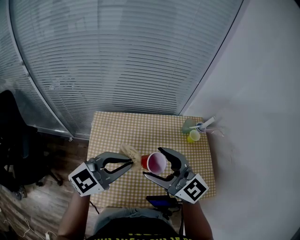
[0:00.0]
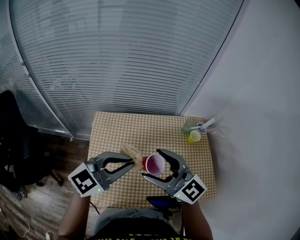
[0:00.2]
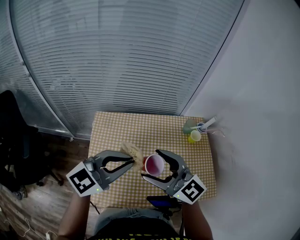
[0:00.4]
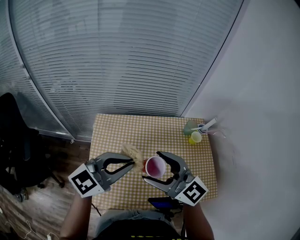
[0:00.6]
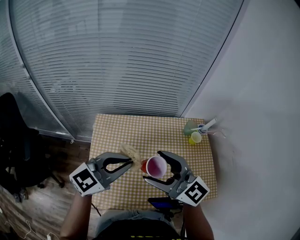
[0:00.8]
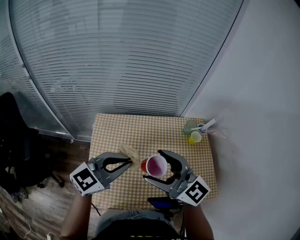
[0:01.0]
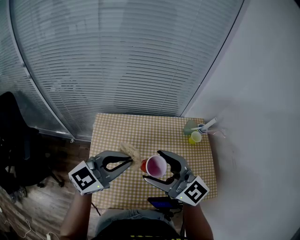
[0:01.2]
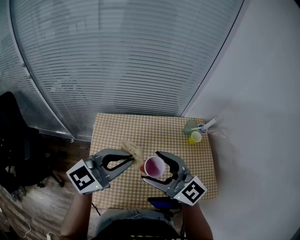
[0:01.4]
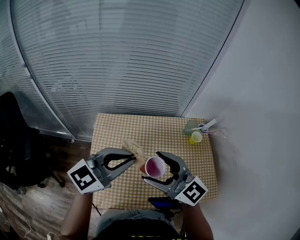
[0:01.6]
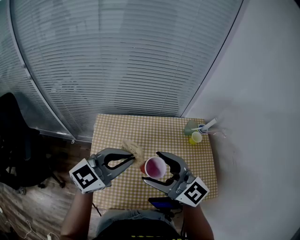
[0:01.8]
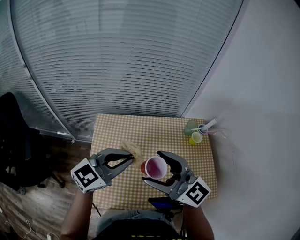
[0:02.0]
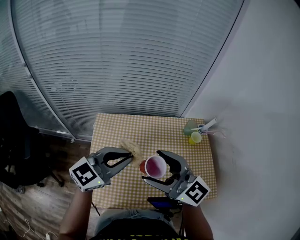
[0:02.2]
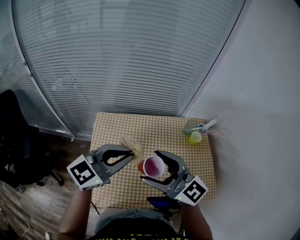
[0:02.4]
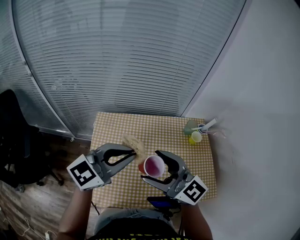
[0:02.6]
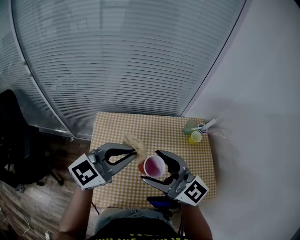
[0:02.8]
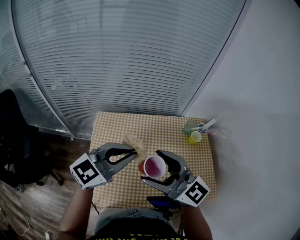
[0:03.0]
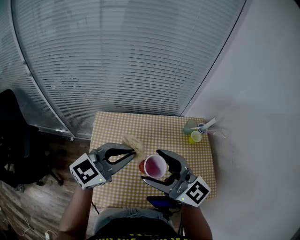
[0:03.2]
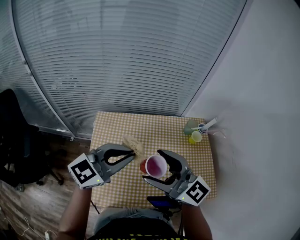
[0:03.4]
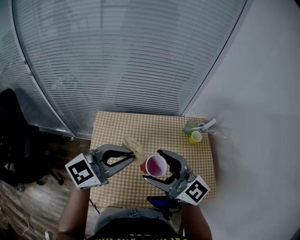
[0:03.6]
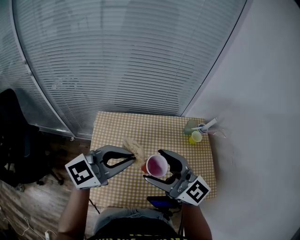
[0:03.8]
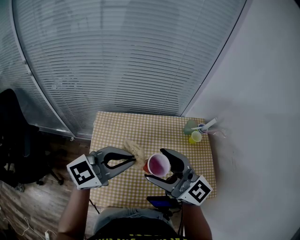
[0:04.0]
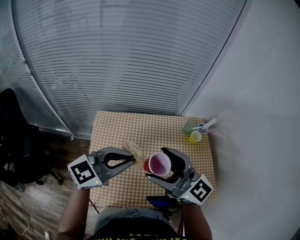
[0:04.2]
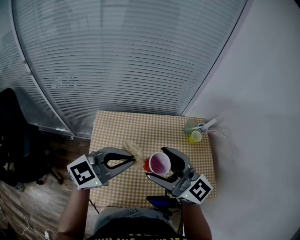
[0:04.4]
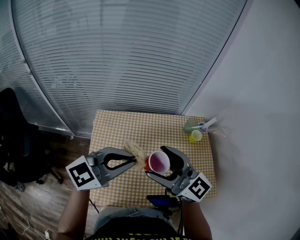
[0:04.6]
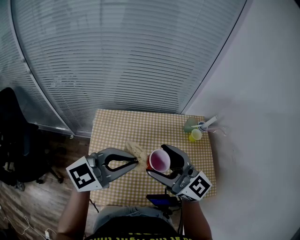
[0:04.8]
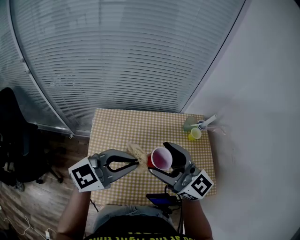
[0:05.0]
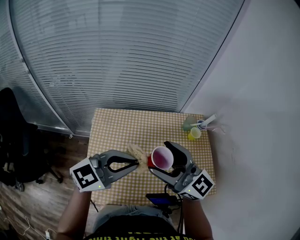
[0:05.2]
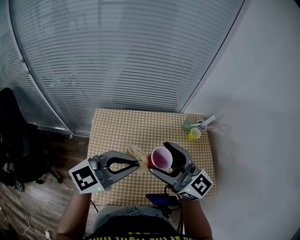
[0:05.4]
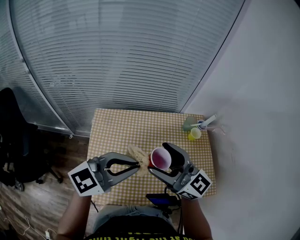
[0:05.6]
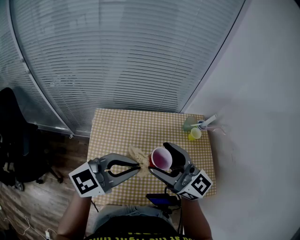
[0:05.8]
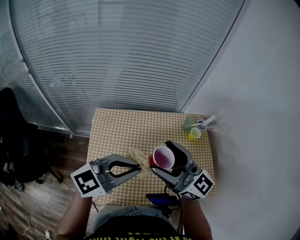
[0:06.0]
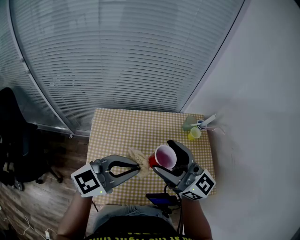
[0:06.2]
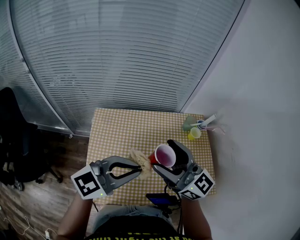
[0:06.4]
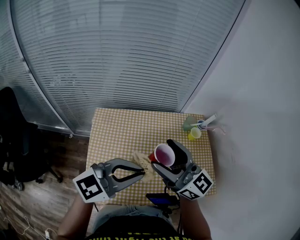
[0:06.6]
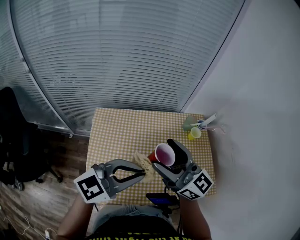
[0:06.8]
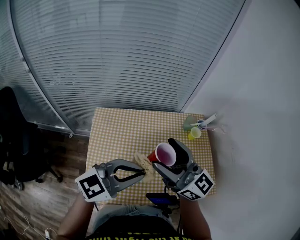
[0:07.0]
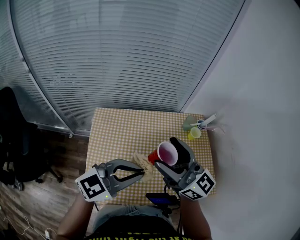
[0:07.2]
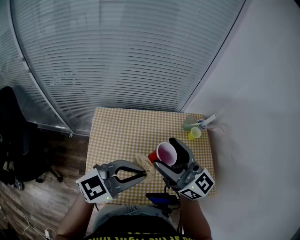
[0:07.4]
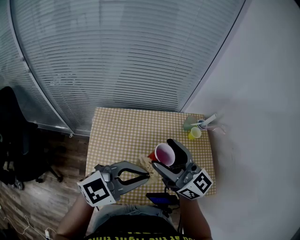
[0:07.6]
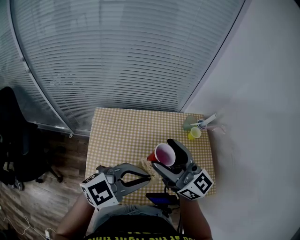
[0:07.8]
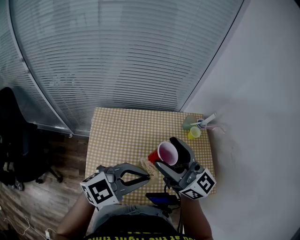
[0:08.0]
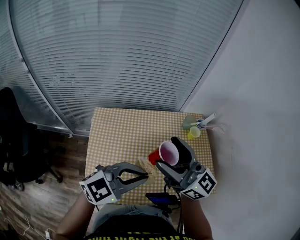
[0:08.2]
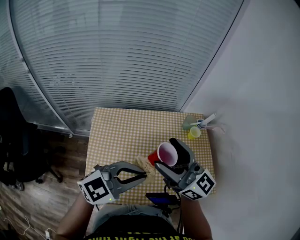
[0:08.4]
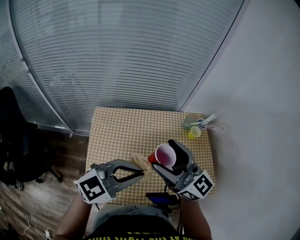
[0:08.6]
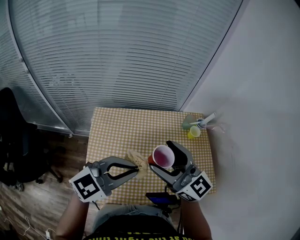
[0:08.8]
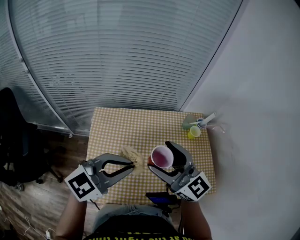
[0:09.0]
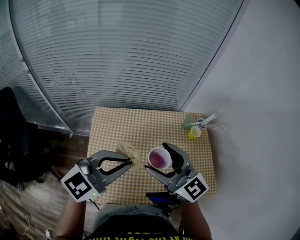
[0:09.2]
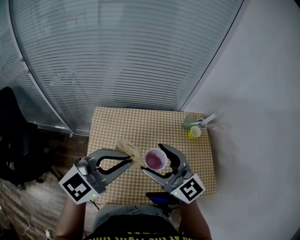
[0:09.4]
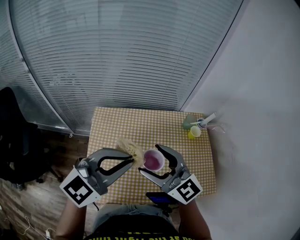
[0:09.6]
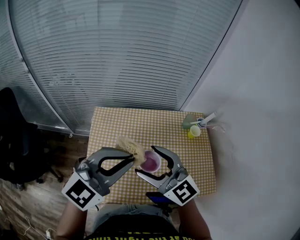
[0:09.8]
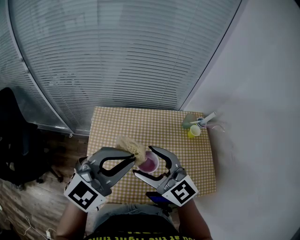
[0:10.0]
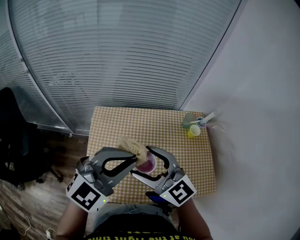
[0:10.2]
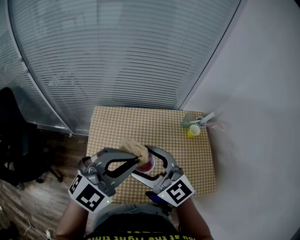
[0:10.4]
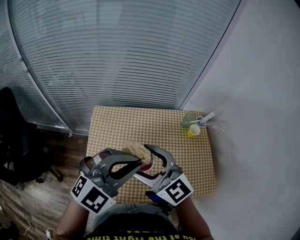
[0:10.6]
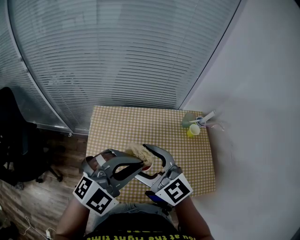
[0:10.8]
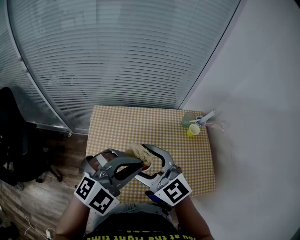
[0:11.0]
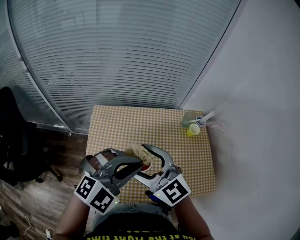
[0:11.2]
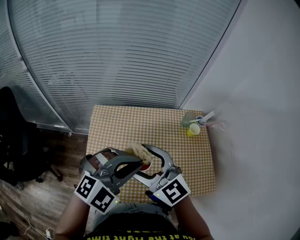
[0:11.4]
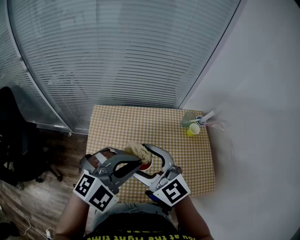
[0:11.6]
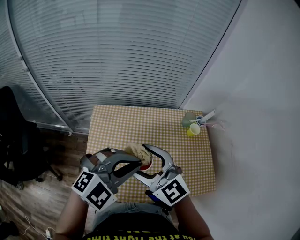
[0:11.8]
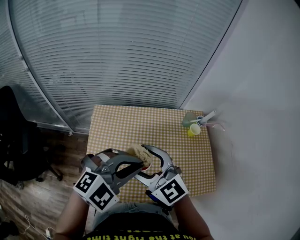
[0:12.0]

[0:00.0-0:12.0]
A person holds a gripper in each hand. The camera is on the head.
0:00.0 to 0:06.0: There are only small adjustments of the grippers.
0:06.0 to 0:07.6: There are only small adjustments of the grippers.
0:07.6 to 0:09.0: The left gripper travels to the left by approximately 5 cm.
0:09.0 to 0:10.4: The right gripper is displaced to the left by roughly 5 cm, and swivels about 20 degrees, while the left gripper turns by about 20 degrees.
0:10.4 to 0:12.0: The grippers move only a little.

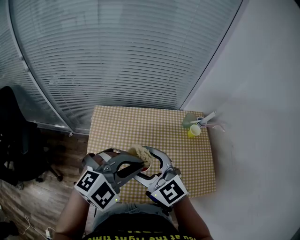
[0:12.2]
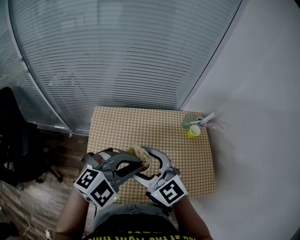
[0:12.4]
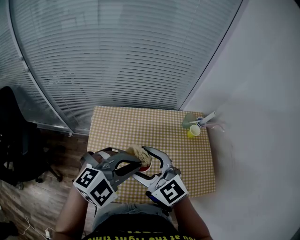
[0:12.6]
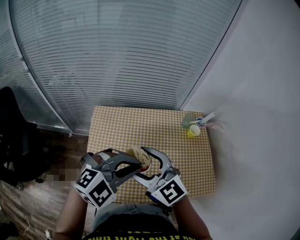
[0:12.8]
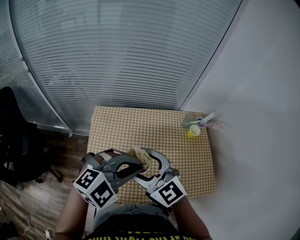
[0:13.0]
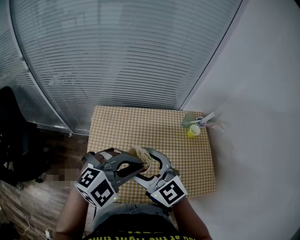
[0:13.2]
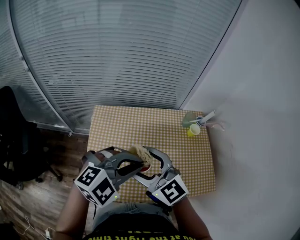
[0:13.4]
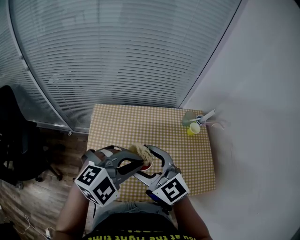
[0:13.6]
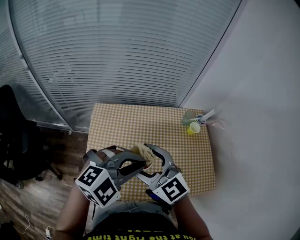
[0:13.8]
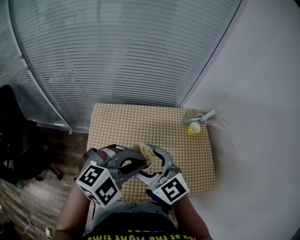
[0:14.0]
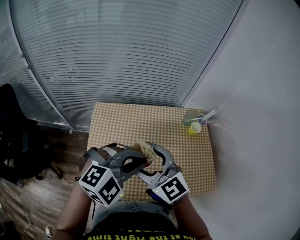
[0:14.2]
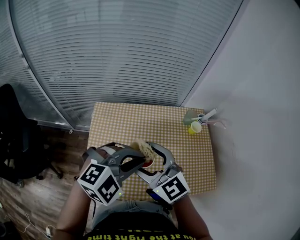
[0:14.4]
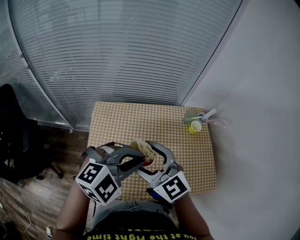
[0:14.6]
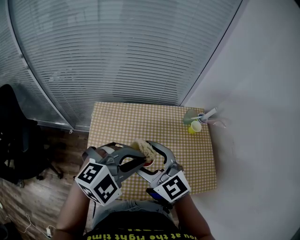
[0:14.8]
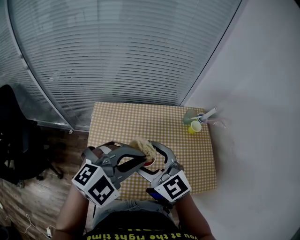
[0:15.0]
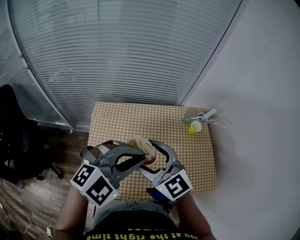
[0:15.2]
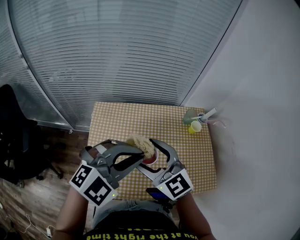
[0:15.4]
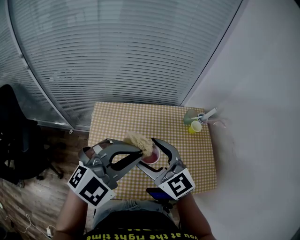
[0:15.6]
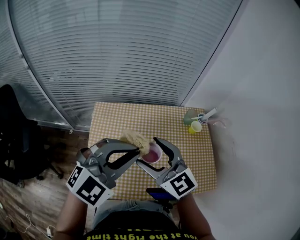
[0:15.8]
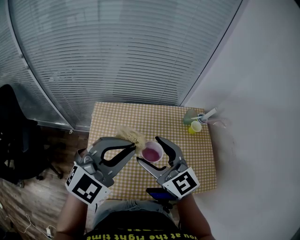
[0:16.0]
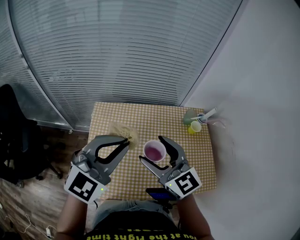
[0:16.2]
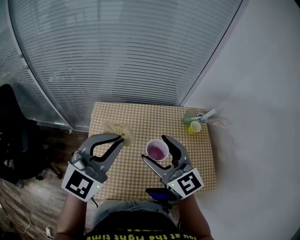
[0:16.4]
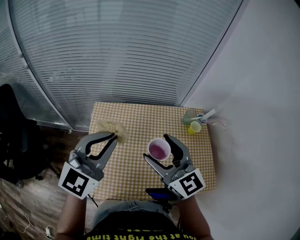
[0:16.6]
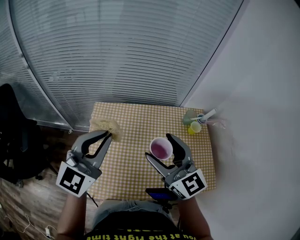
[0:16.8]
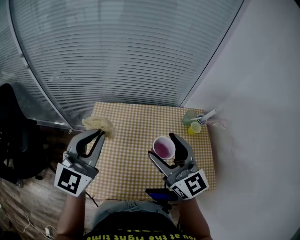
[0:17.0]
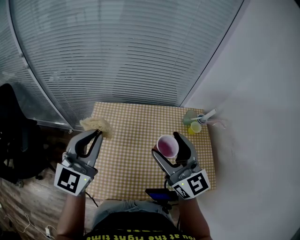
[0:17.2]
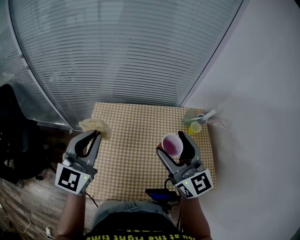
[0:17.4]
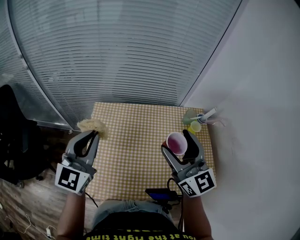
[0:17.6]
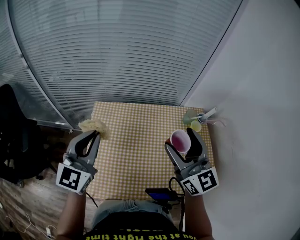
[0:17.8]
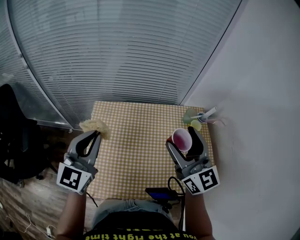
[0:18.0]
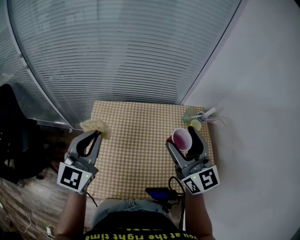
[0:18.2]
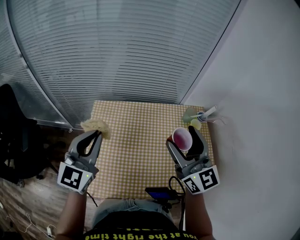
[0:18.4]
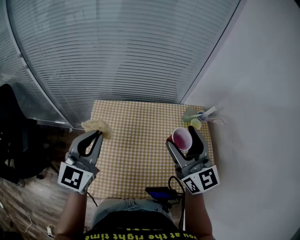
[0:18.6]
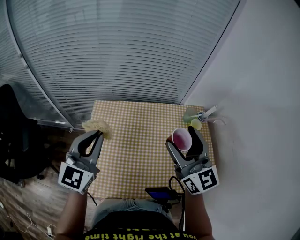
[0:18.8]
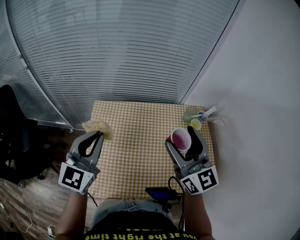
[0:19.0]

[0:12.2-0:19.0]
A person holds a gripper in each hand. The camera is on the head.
0:12.2 to 0:13.6: Both grippers stay about where they are.
0:13.6 to 0:15.0: There are only small adjustments of the grippers.
0:15.0 to 0:16.2: The left gripper is displaced to the left by some 5 cm, and changes its angle by approximately 30 degrees.
0:16.2 to 0:17.6: The left gripper shifts about 10 cm to the left, and changes its angle by roughly 30 degrees. Meanwhile the right gripper goes approximately 5 cm to the right.
0:17.6 to 0:19.0: The grippers stay close to where they were, moving slightly.

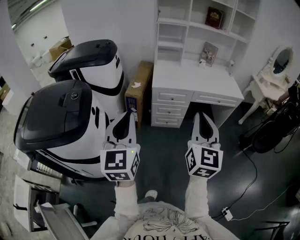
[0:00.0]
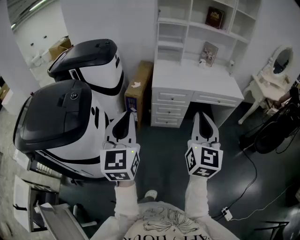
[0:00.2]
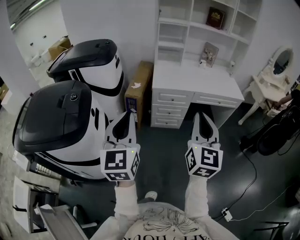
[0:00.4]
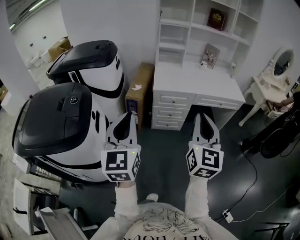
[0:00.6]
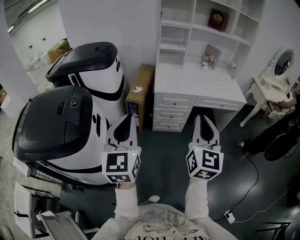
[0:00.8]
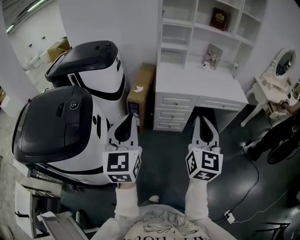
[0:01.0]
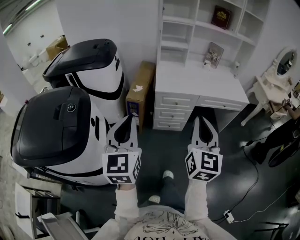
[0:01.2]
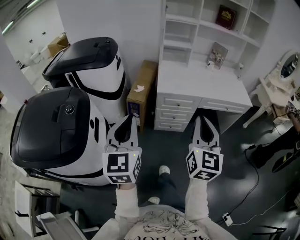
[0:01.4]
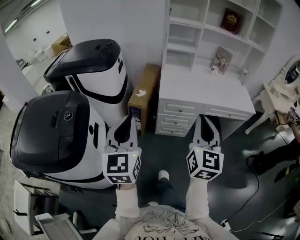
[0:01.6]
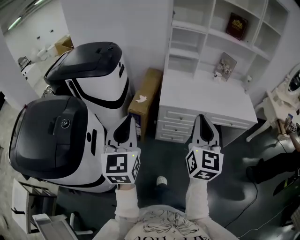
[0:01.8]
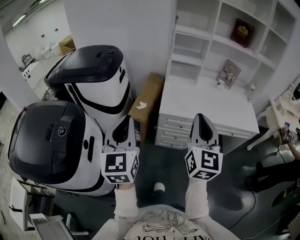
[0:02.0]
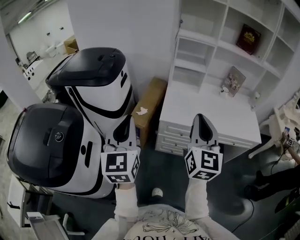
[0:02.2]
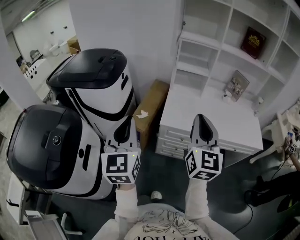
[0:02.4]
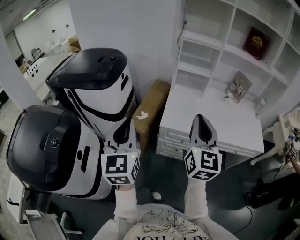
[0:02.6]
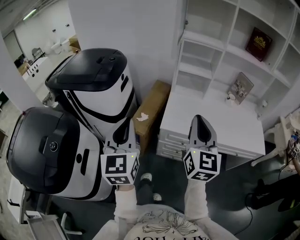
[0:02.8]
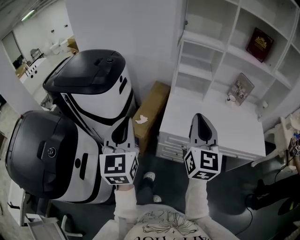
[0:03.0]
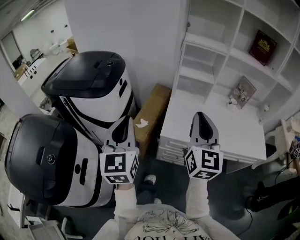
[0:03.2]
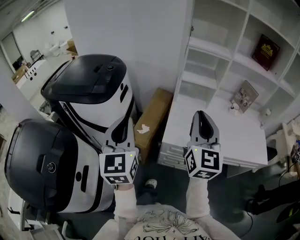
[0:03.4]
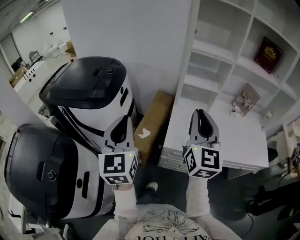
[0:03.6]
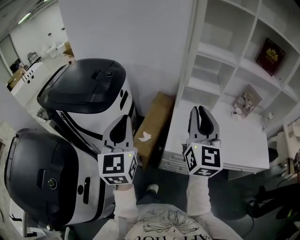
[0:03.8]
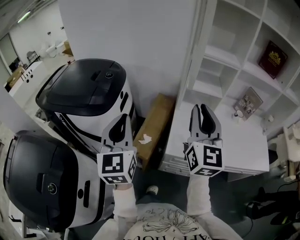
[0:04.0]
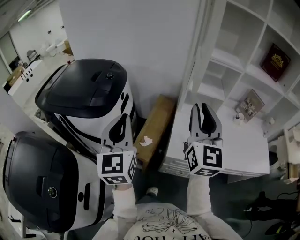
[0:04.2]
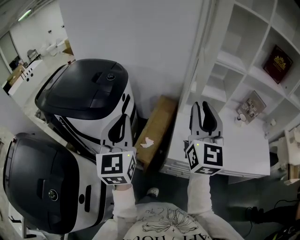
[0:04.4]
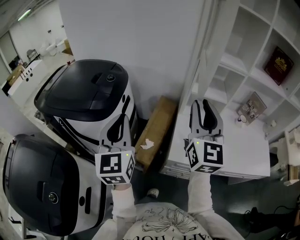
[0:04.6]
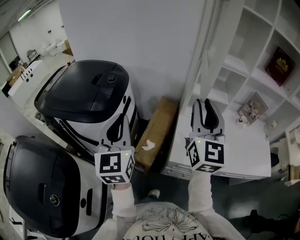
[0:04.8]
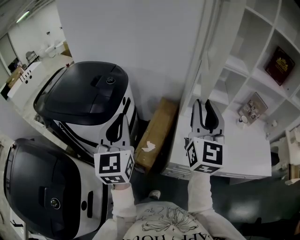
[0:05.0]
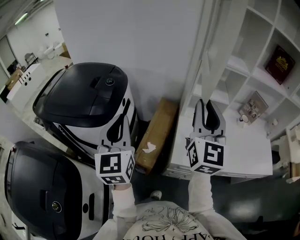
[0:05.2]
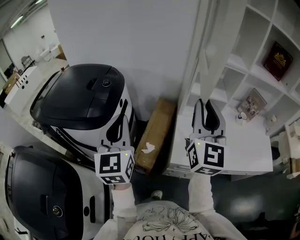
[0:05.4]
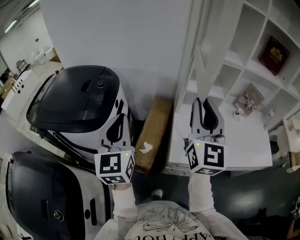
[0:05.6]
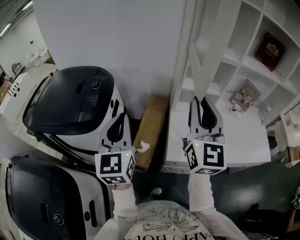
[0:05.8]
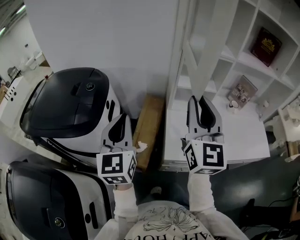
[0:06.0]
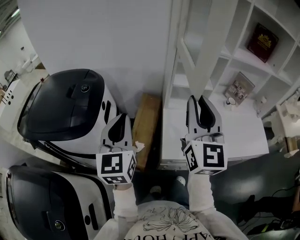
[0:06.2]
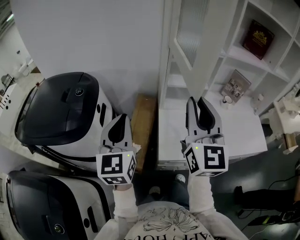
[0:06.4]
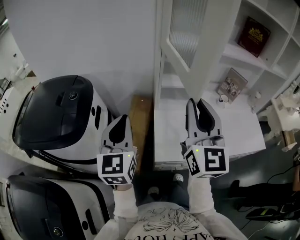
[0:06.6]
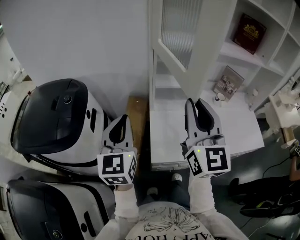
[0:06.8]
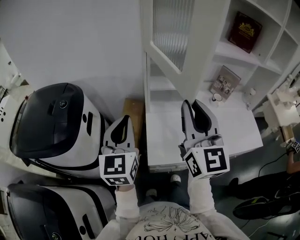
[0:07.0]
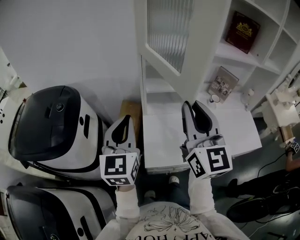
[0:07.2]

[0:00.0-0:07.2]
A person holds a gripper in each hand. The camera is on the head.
0:00.0 to 0:01.4: Both grippers move forward, some 15 cm.
0:01.4 to 0:02.8: The grippers both shift forward by roughly 30 cm.
0:02.8 to 0:04.4: The two grippers go some 25 cm forward.
0:04.4 to 0:05.8: The left gripper heads forward, covering approximately 5 cm.
0:05.8 to 0:07.2: The left gripper heads to the right and forward, covering some 20 cm; the right gripper is displaced to the right by some 15 cm.
